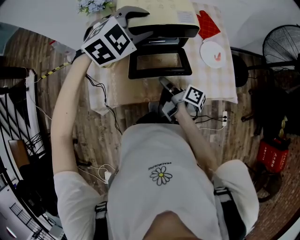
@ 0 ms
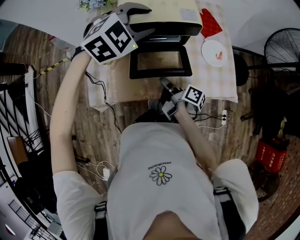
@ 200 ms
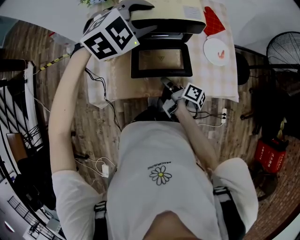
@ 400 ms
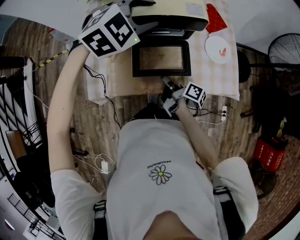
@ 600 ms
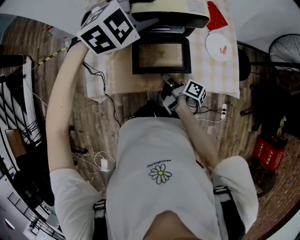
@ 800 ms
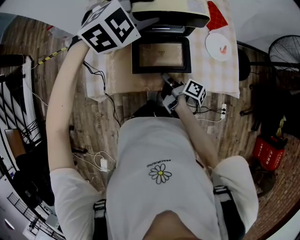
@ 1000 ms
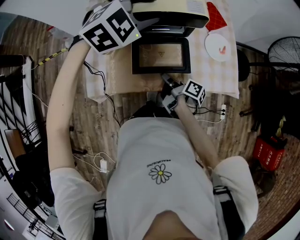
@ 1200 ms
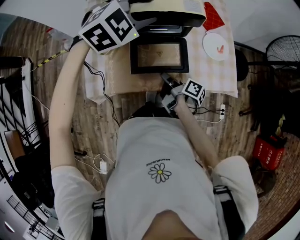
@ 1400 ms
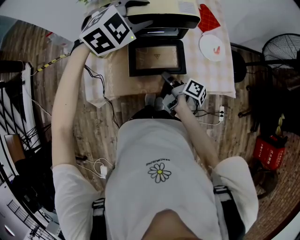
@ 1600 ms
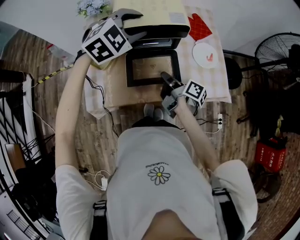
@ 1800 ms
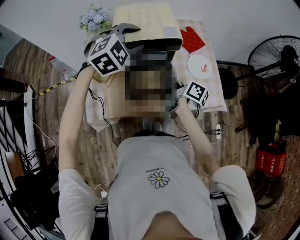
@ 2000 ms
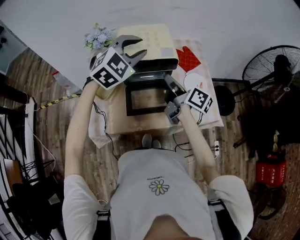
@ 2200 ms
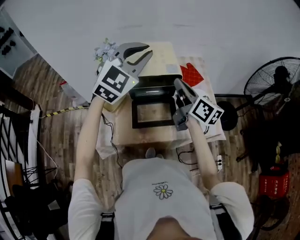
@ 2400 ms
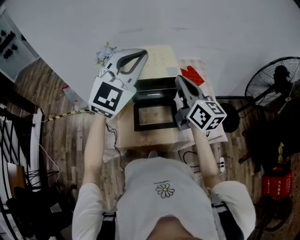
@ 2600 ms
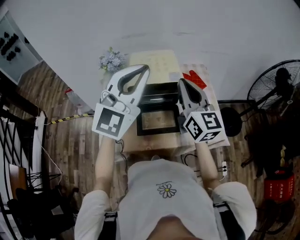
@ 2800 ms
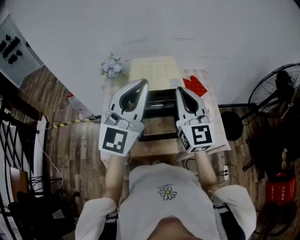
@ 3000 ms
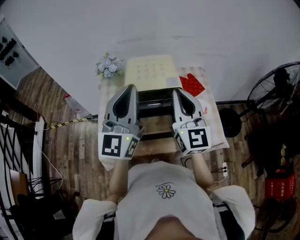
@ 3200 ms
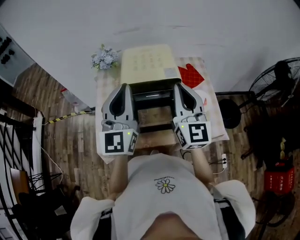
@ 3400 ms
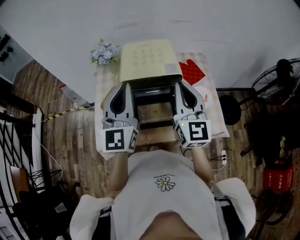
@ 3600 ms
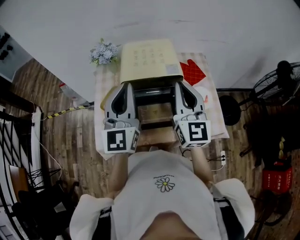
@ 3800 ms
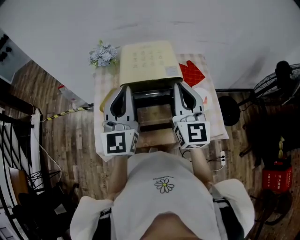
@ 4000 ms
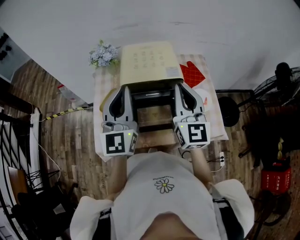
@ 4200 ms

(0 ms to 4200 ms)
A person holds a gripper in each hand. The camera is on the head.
0 ms - 1400 ms: The grippers stay close to where they were, moving slightly.
1400 ms - 2800 ms: The left gripper heads upward and backward, covering approximately 25 cm, angles its fingers upward, by about 50 degrees, and closes its fingers. Meanwhile the right gripper goes about 35 cm upward, and rolls counterclockwise, seen from behind, by roughly 80 degrees.
2800 ms - 4200 ms: The left gripper travels downward and to the left by about 15 cm, and turns by about 30 degrees.

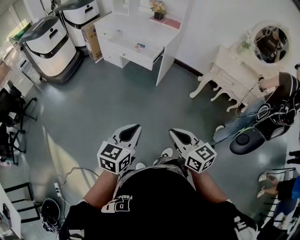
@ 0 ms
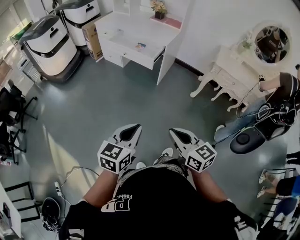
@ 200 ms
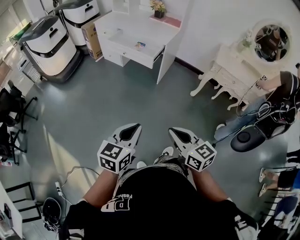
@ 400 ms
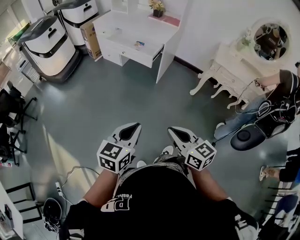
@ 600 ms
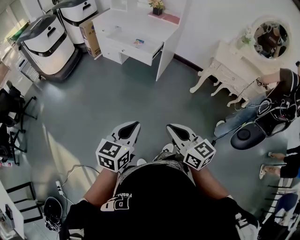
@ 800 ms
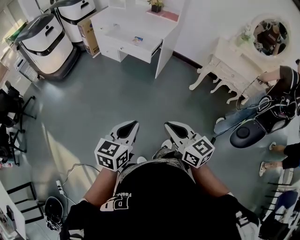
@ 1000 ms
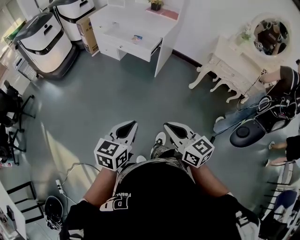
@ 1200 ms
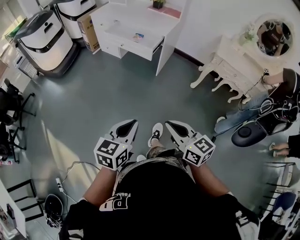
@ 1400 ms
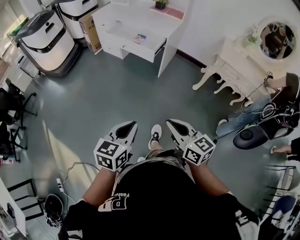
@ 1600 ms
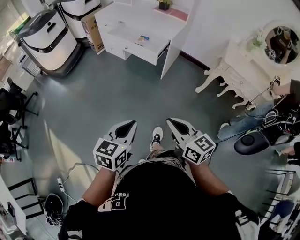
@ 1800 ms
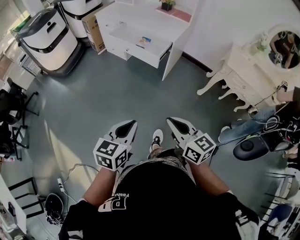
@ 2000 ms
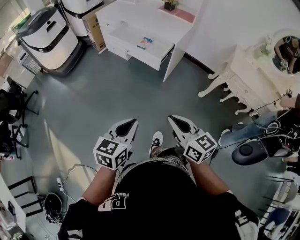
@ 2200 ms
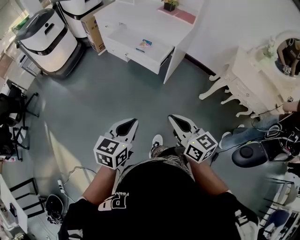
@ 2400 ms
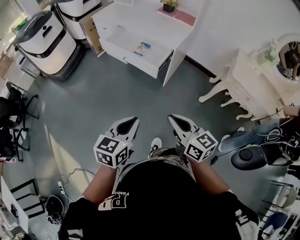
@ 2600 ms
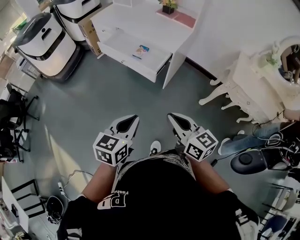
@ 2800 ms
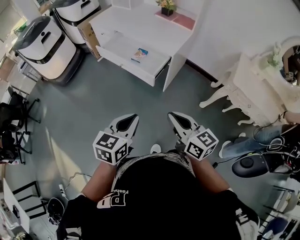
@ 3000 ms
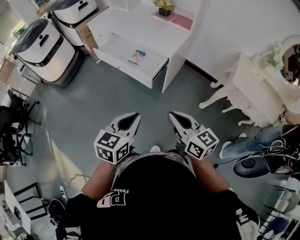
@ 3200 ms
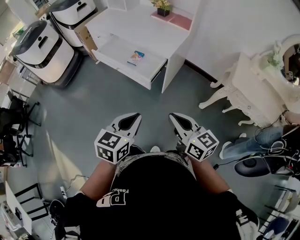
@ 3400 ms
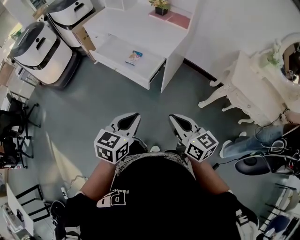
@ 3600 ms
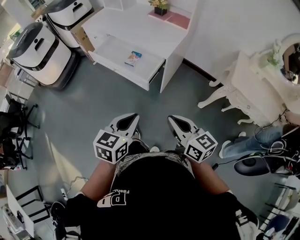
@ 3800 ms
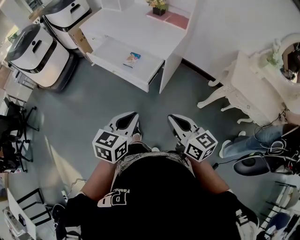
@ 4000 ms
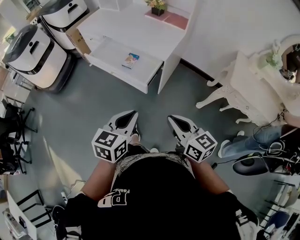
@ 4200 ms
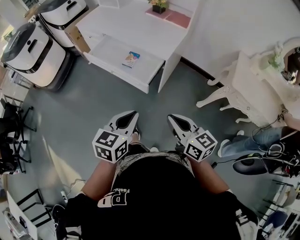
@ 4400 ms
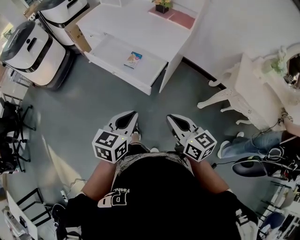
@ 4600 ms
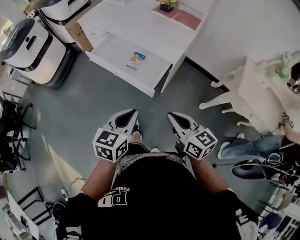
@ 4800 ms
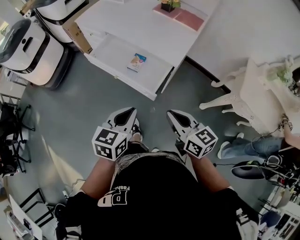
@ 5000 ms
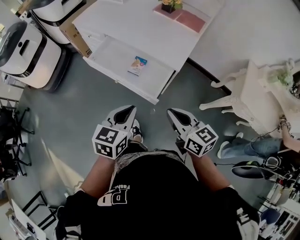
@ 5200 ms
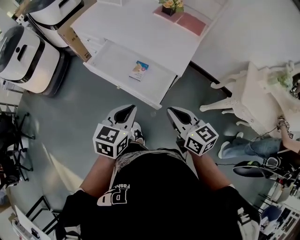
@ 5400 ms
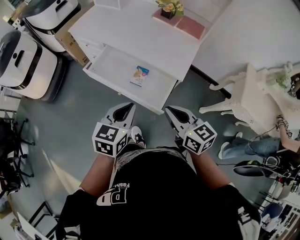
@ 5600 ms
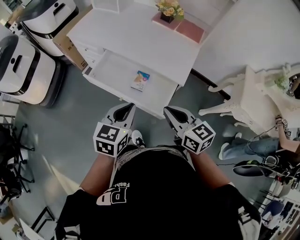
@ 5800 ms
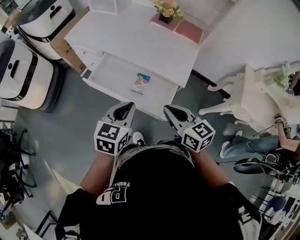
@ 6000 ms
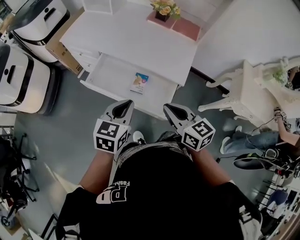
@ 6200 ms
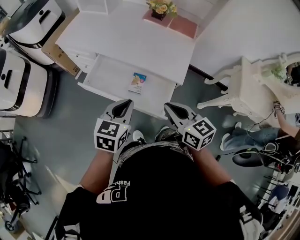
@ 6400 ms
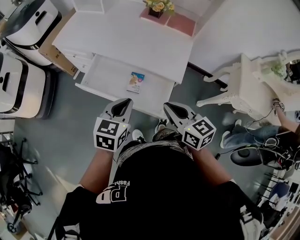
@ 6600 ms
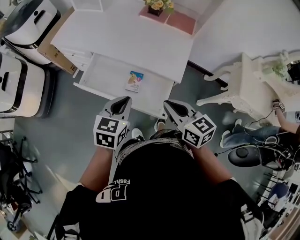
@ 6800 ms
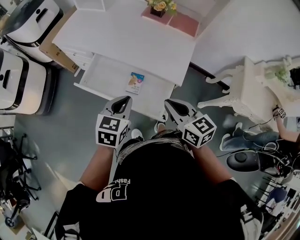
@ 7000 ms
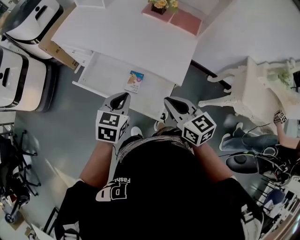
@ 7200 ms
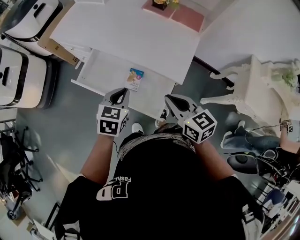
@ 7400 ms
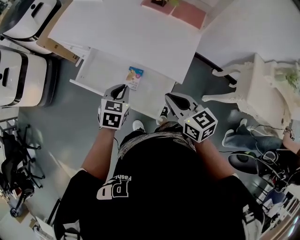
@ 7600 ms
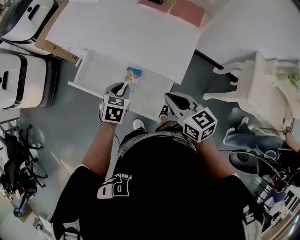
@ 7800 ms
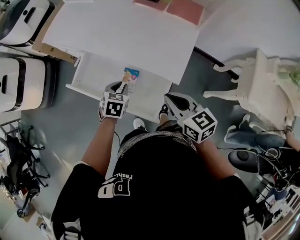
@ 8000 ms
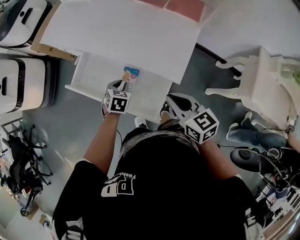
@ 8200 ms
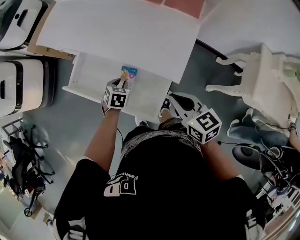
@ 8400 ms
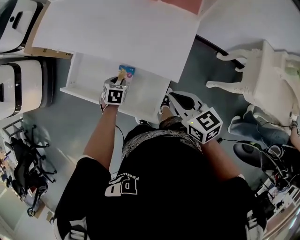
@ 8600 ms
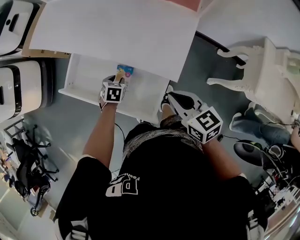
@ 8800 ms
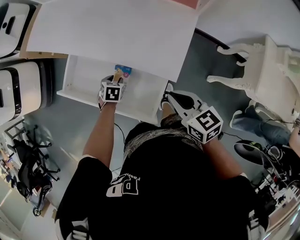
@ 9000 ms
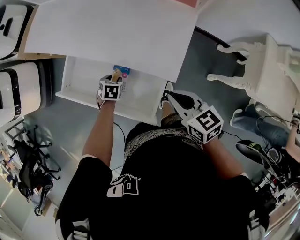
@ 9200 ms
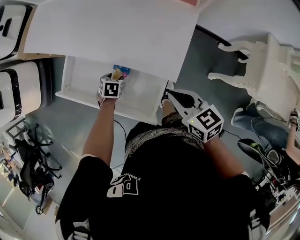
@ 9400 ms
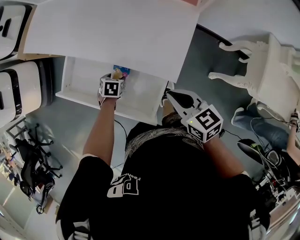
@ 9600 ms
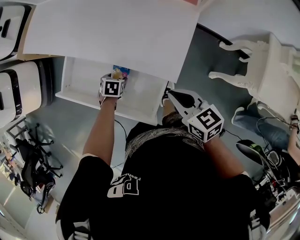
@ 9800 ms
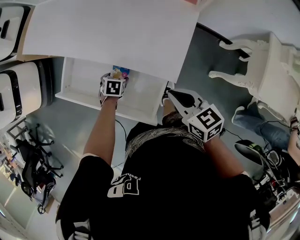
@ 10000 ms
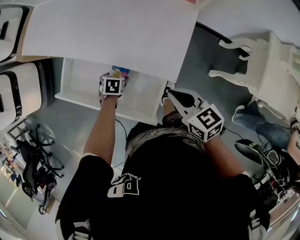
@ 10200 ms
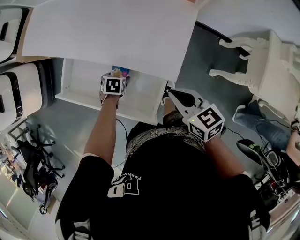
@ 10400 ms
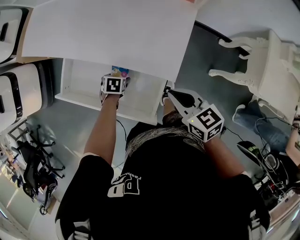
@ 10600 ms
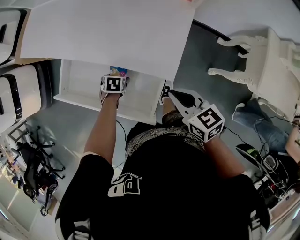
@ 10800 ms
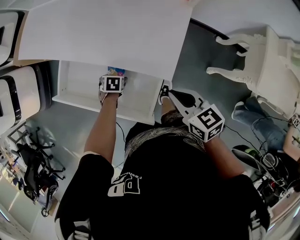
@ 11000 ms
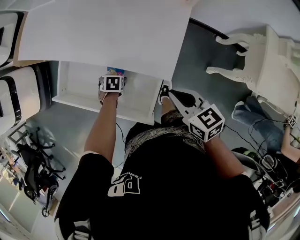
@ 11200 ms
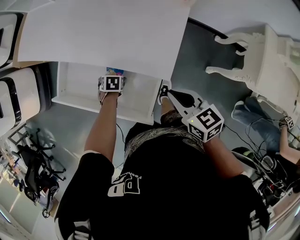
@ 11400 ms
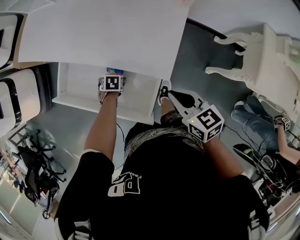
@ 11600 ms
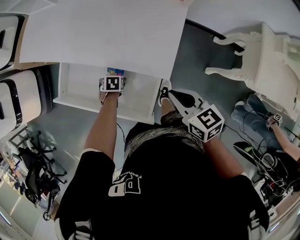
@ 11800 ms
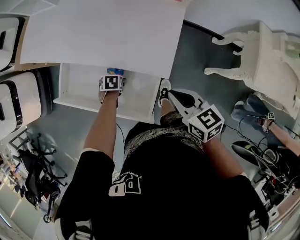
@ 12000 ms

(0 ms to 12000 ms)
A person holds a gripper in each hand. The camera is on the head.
0 ms - 1600 ms: The right gripper is displaced forward by roughly 5 cm.
1600 ms - 3000 ms: Both grippers travel together forward, roughly 30 cm.
3000 ms - 4400 ms: The grippers both shift forward by approximately 10 cm.
4400 ms - 6000 ms: The two grippers go roughly 35 cm forward and to the left.
6000 ms - 7600 ms: The left gripper is displaced forward and downward by roughly 20 cm; the right gripper is displaced forward, to the right and downward by roughly 15 cm.
7600 ms - 9000 ms: The right gripper travels to the right and downward by approximately 10 cm. The left gripper heads downward, covering roughly 20 cm, changes its angle by some 20 degrees, and opens up.
9000 ms - 10400 ms: The left gripper opens its fingers.
10400 ms - 12000 ms: The grippers stay close to where they were, moving slightly.

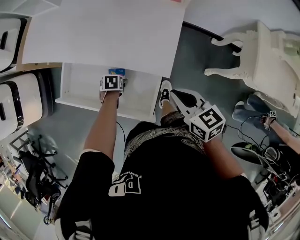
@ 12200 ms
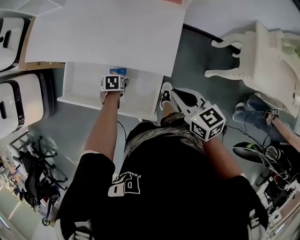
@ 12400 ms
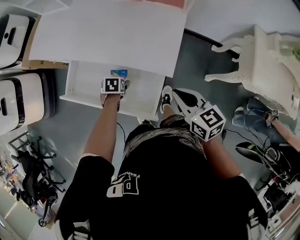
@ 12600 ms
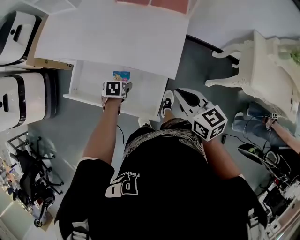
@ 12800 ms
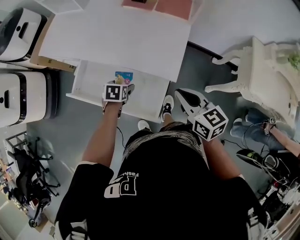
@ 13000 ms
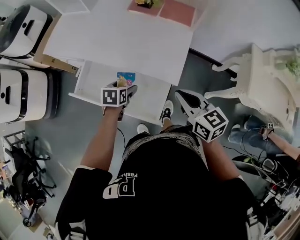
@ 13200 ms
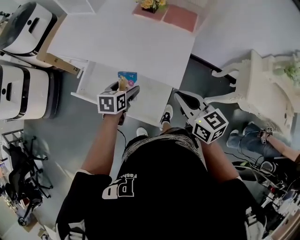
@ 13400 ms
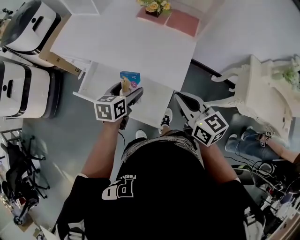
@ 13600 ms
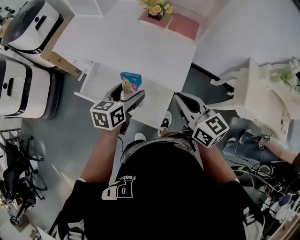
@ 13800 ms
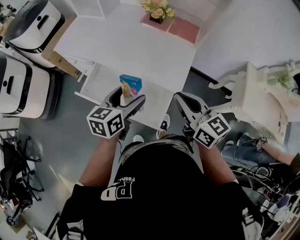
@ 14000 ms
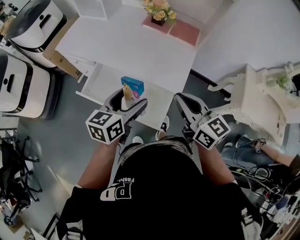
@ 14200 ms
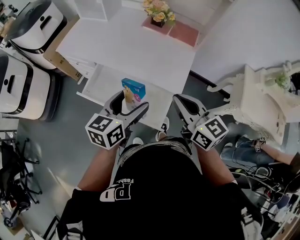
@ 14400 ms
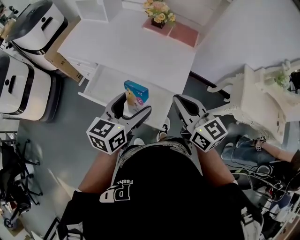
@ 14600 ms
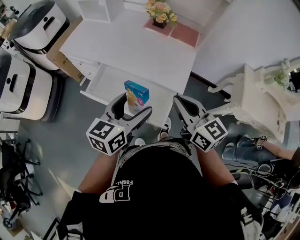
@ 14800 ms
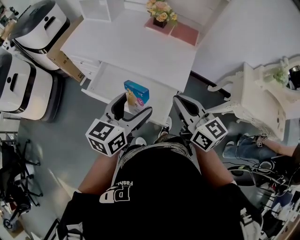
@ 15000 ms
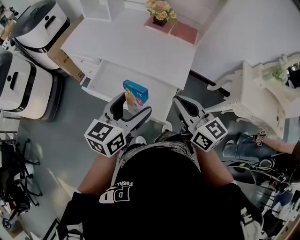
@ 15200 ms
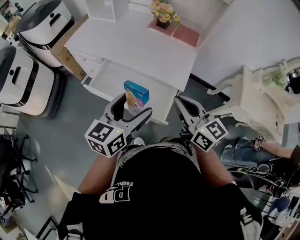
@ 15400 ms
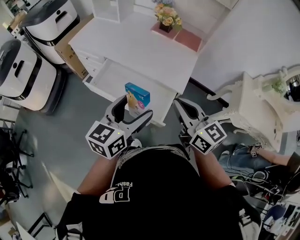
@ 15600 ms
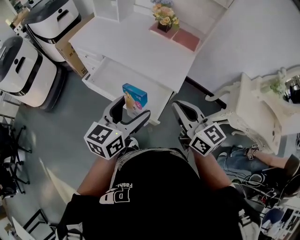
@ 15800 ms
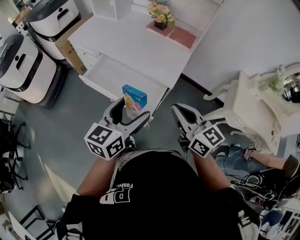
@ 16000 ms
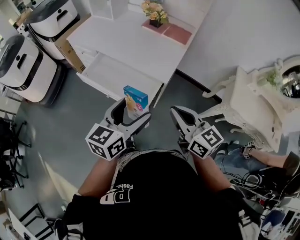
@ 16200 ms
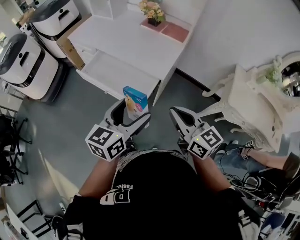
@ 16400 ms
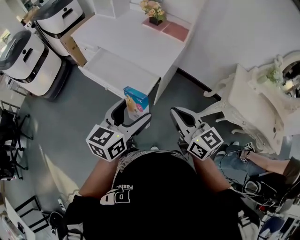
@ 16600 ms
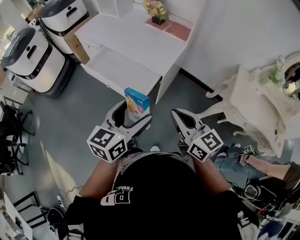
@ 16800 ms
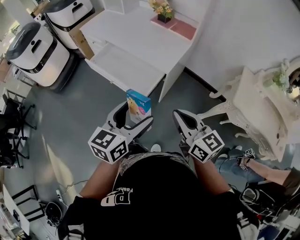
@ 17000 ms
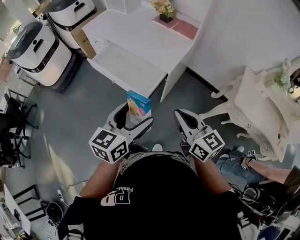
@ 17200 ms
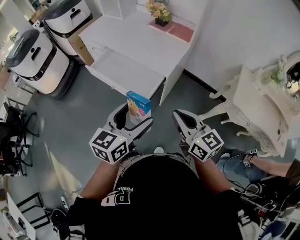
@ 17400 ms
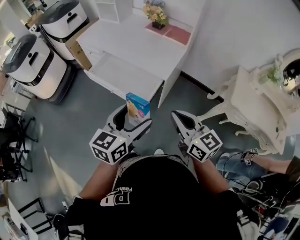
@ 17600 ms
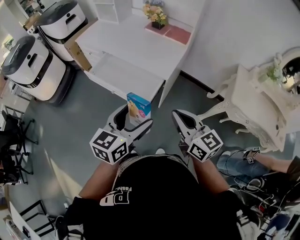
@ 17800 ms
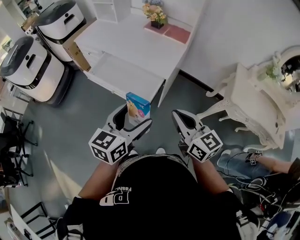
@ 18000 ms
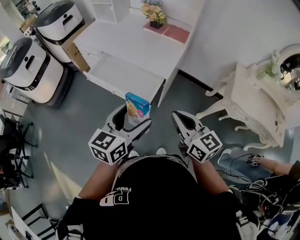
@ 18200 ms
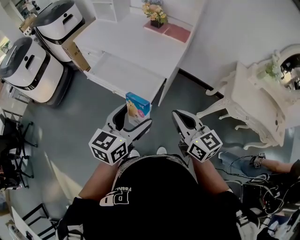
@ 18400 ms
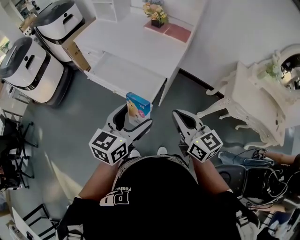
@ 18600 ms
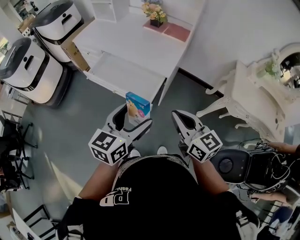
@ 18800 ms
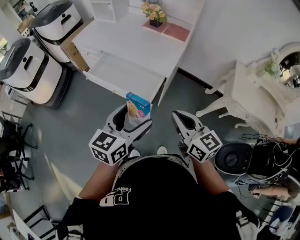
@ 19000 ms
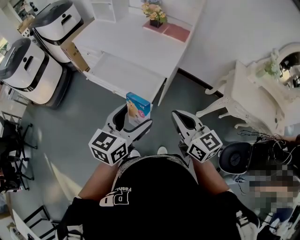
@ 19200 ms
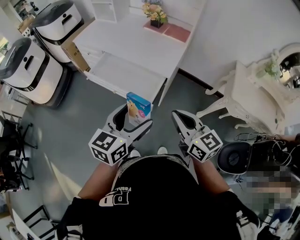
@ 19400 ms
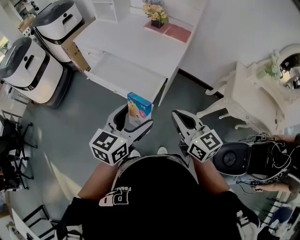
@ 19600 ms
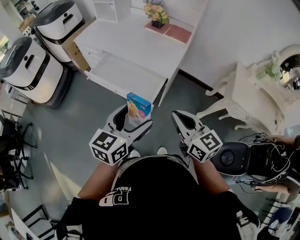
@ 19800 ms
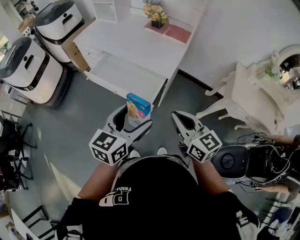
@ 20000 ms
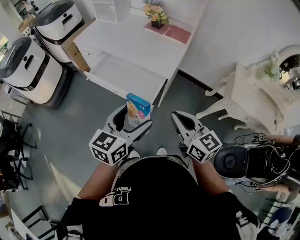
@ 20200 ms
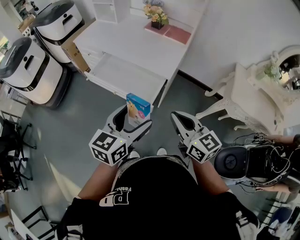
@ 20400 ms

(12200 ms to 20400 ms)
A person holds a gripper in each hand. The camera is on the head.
12200 ms - 13800 ms: The left gripper is displaced upward by roughly 35 cm, and tilts its fingers approximately 50 degrees upward, while the right gripper goes roughly 15 cm upward, and turns by some 20 degrees.
13800 ms - 15400 ms: The right gripper shifts roughly 10 cm backward and to the left. Meanwhile the left gripper is displaced backward and upward by approximately 20 cm.
15400 ms - 17200 ms: The grippers both shift backward and to the right by roughly 25 cm.
17200 ms - 18800 ms: The grippers both shift to the left by some 5 cm.
18800 ms - 20400 ms: There are only small adjustments of the grippers.
